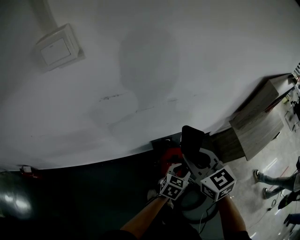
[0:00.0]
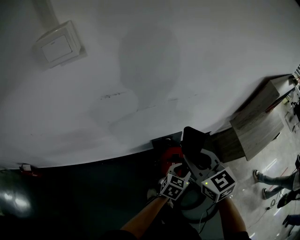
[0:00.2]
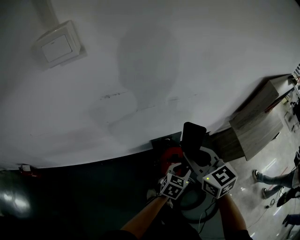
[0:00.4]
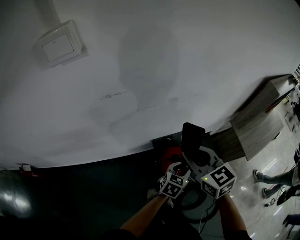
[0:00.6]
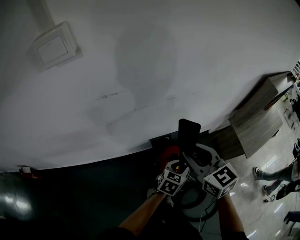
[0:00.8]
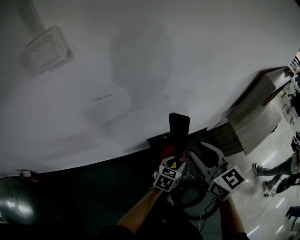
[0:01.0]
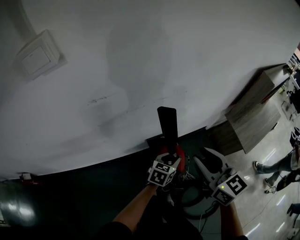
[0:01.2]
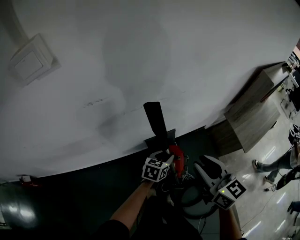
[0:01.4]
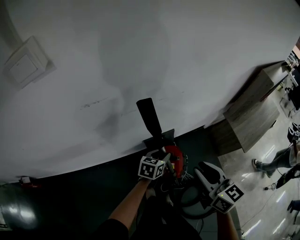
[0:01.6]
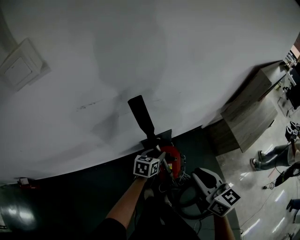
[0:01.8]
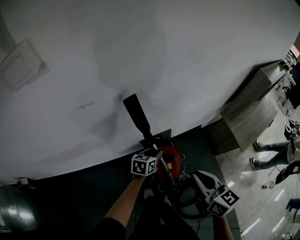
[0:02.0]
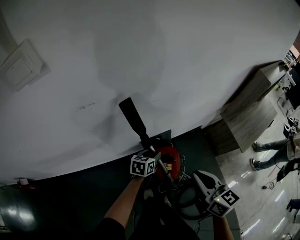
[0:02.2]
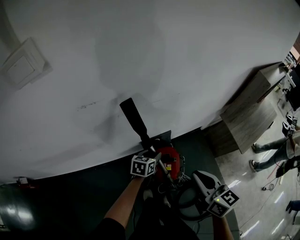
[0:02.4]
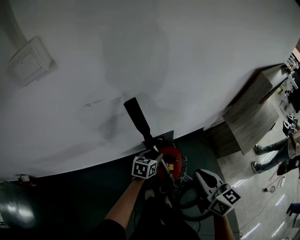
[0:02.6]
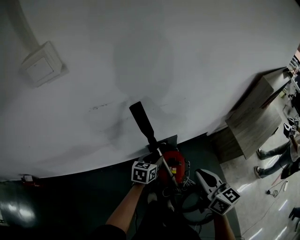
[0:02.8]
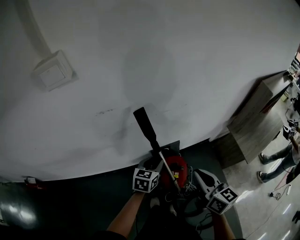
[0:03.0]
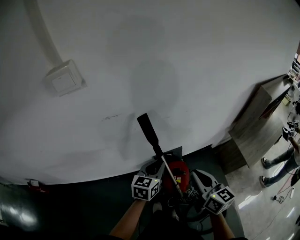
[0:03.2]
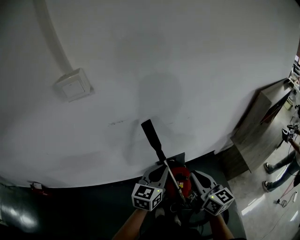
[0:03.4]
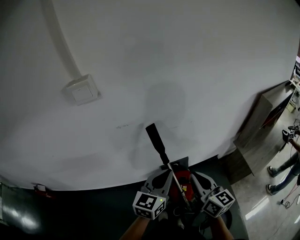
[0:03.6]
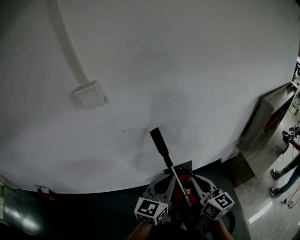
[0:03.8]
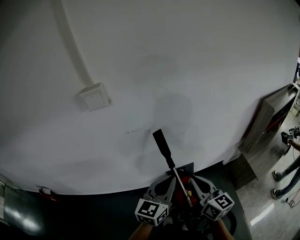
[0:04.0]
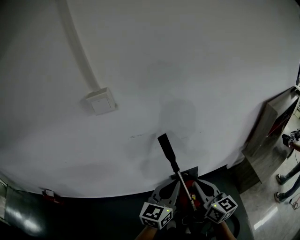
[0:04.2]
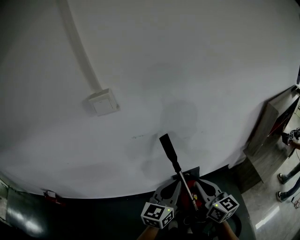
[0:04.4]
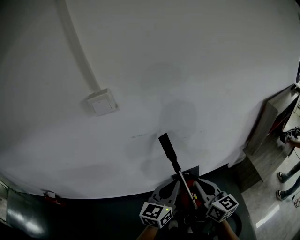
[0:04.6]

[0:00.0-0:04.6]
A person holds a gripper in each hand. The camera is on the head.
0:00.0 to 0:01.6: The right gripper shifts some 10 cm to the right, and rotates about 20 degrees. The left gripper travels forward and to the left by roughly 10 cm.
0:01.6 to 0:03.0: The right gripper closes, while the left gripper moves upward and to the left, approximately 10 cm.
0:03.0 to 0:04.6: The right gripper moves upward and to the left, roughly 10 cm, while the left gripper shifts some 25 cm upward and backward, turns by about 30 degrees, and closes its fingers.

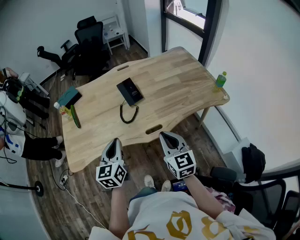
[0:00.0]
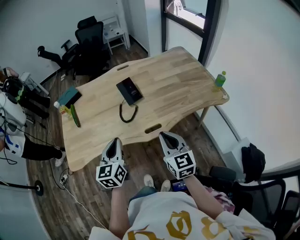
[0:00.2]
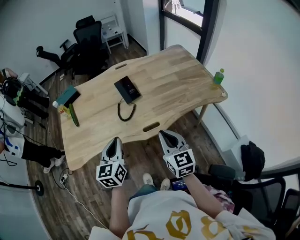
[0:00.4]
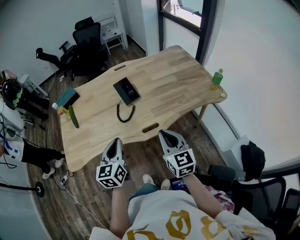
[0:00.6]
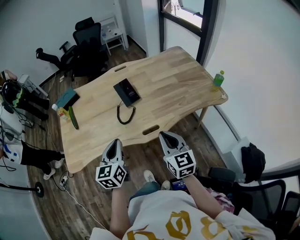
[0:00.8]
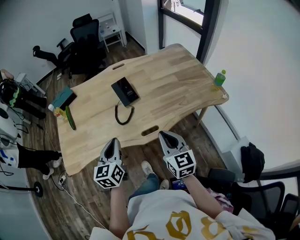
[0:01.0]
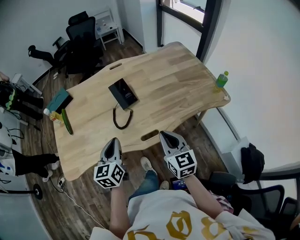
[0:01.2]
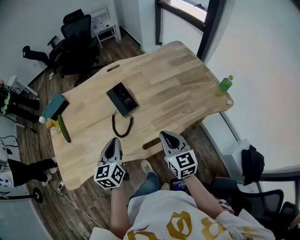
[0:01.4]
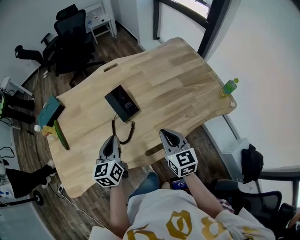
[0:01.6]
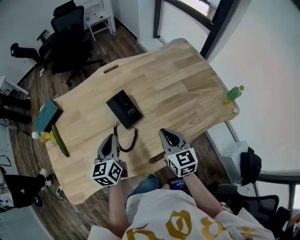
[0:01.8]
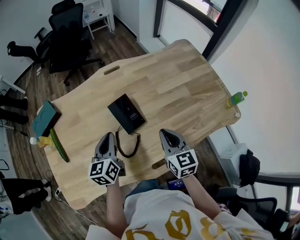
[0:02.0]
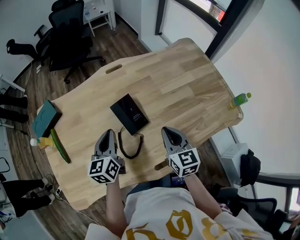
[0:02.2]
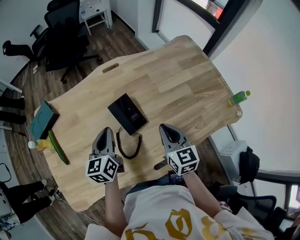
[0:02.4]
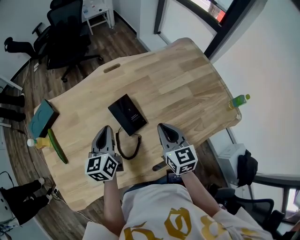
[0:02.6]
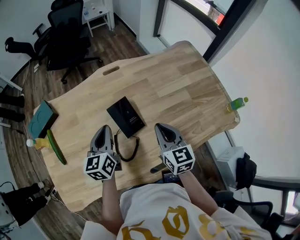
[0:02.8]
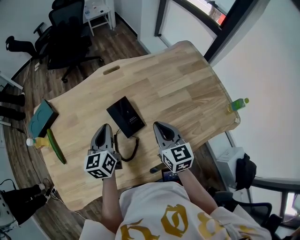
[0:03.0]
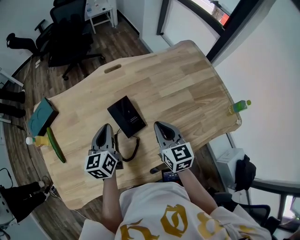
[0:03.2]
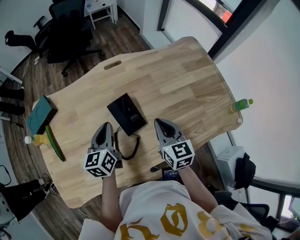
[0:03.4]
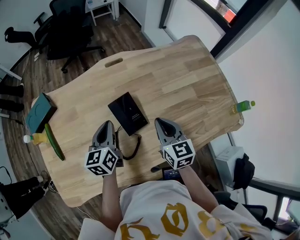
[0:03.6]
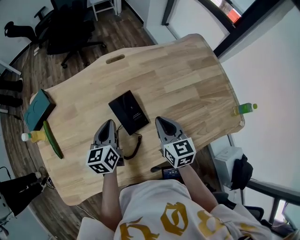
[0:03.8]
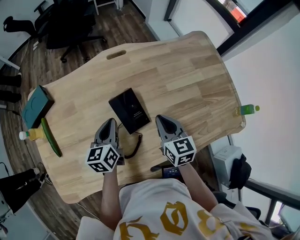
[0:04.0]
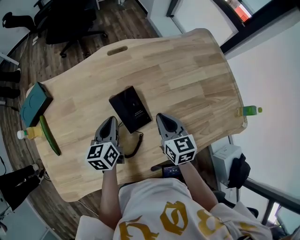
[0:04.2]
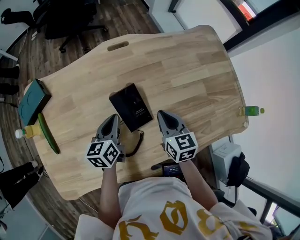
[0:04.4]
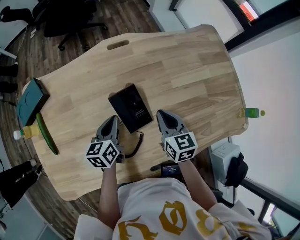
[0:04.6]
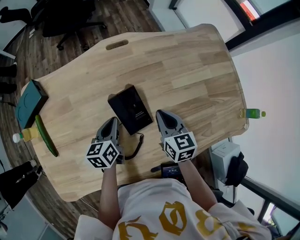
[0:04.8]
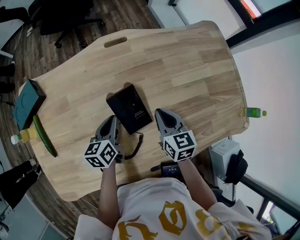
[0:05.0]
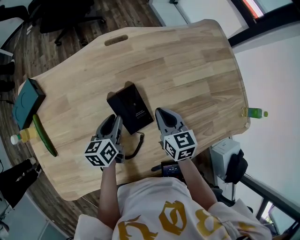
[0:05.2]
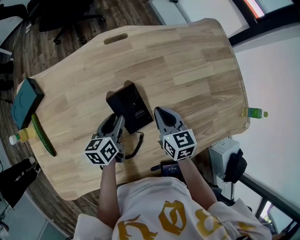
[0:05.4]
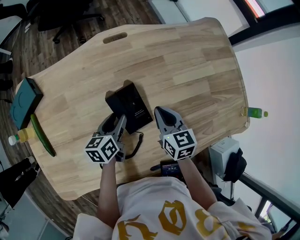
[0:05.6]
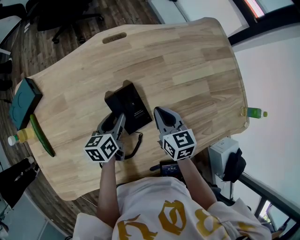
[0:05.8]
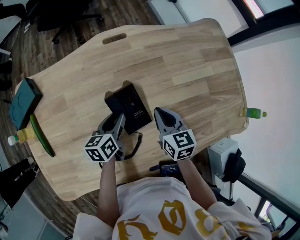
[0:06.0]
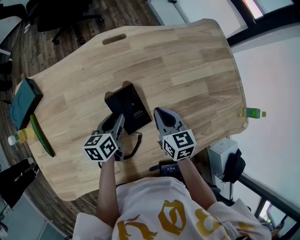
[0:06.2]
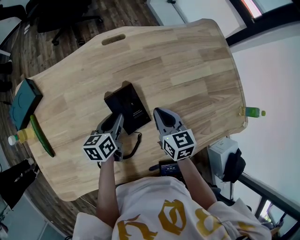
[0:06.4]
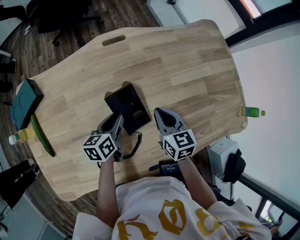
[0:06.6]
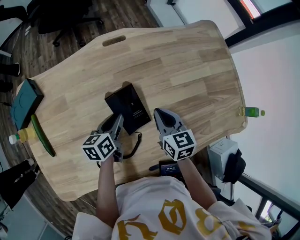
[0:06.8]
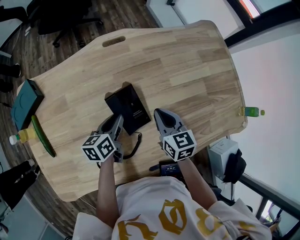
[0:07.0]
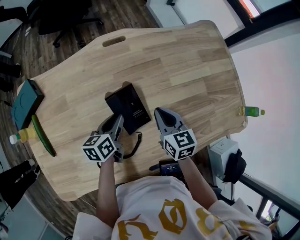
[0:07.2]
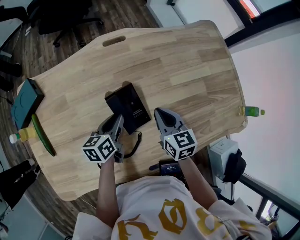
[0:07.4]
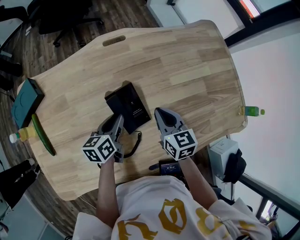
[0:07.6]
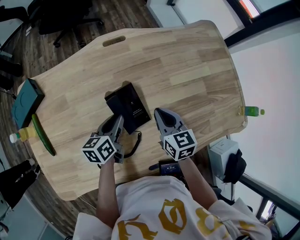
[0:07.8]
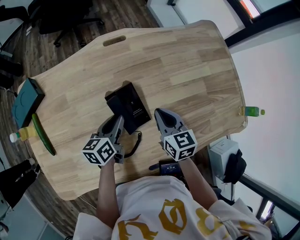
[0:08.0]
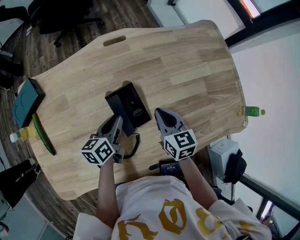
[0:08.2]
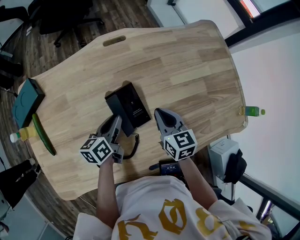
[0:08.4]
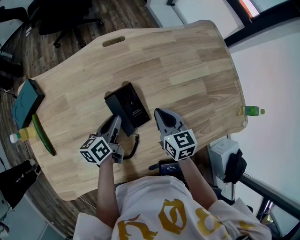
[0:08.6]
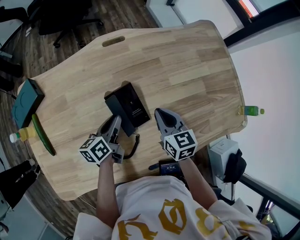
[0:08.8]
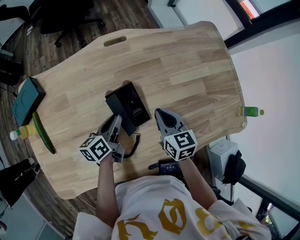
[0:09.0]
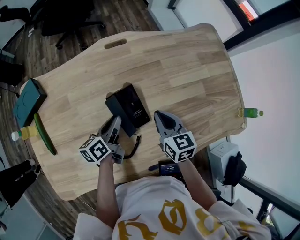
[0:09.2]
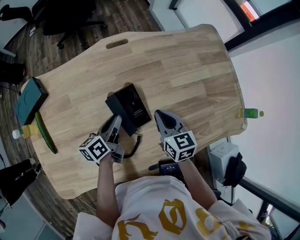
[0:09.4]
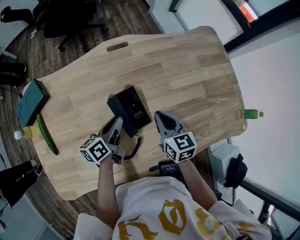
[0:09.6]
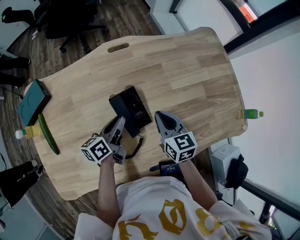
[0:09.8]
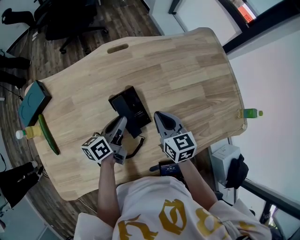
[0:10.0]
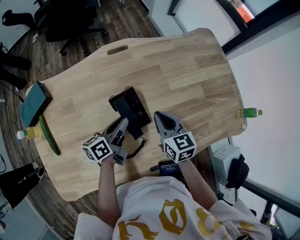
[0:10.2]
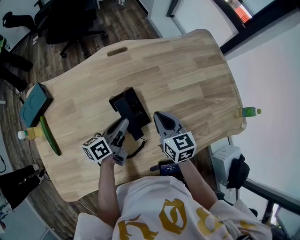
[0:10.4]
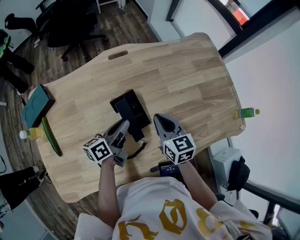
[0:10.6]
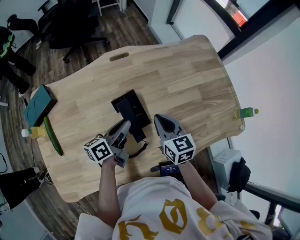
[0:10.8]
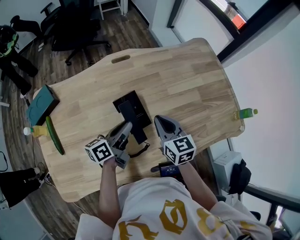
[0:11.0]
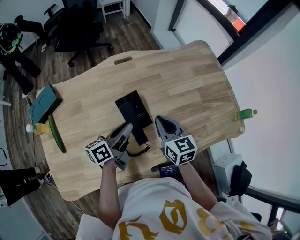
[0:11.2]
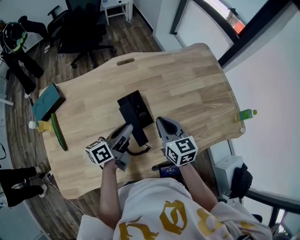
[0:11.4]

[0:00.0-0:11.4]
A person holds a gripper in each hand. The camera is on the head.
0:00.0 to 0:01.4: Both grippers travel together forward, approximately 10 cm.
0:01.4 to 0:02.8: The grippers both shift forward by about 20 cm.
0:02.8 to 0:04.2: The right gripper moves downward and forward, approximately 10 cm. The left gripper travels downward by some 10 cm.
0:04.2 to 0:05.6: The right gripper moves some 5 cm. The left gripper goes about 5 cm downward, and opens up.
0:05.6 to 0:07.2: Both grippers stay about where they are.
0:07.2 to 0:10.0: The grippers make only small movements.
0:10.0 to 0:11.4: The two grippers go approximately 5 cm upward.

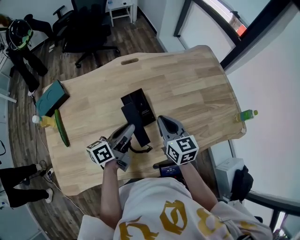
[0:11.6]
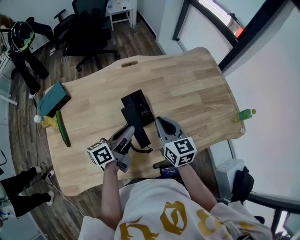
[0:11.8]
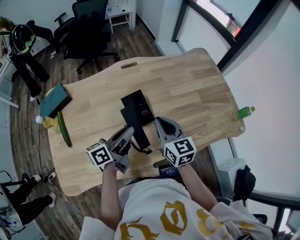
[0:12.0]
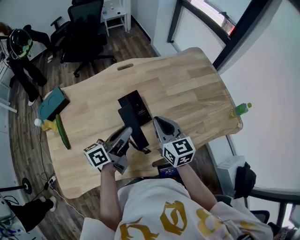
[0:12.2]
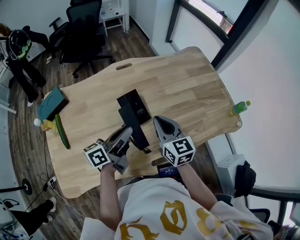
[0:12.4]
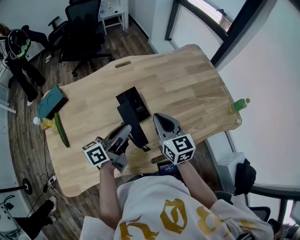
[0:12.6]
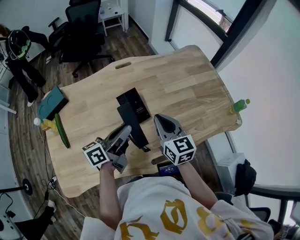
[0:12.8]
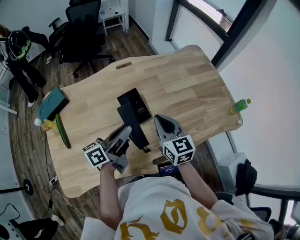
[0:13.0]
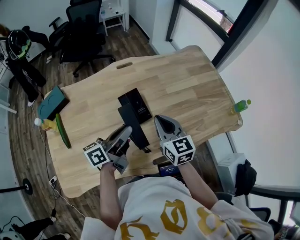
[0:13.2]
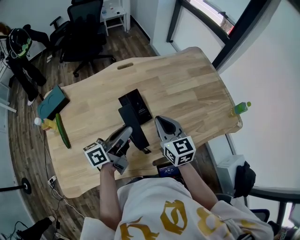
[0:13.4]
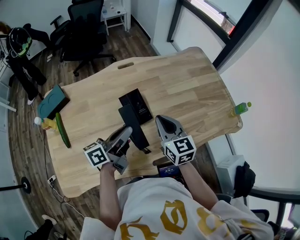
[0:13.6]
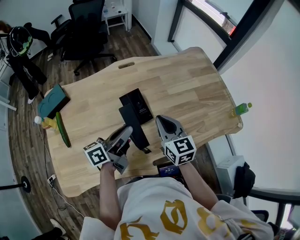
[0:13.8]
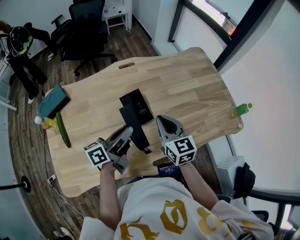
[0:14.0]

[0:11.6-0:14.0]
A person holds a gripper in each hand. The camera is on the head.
0:11.6 to 0:12.8: The left gripper ends up some 5 cm from where it was. The right gripper ends up about 5 cm from where it was.
0:12.8 to 0:14.0: Both grippers stay put.

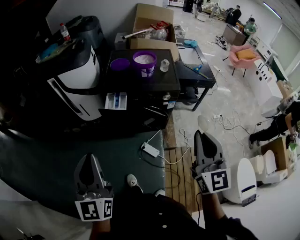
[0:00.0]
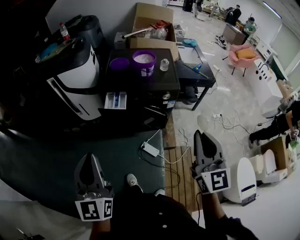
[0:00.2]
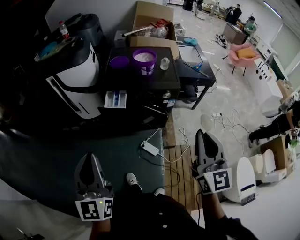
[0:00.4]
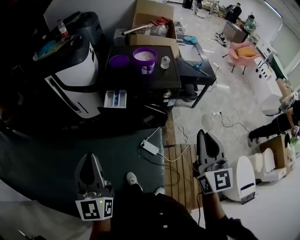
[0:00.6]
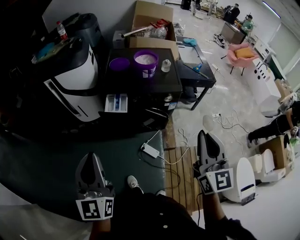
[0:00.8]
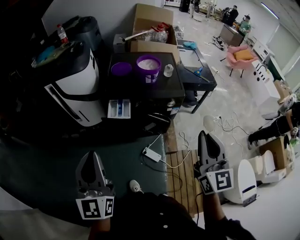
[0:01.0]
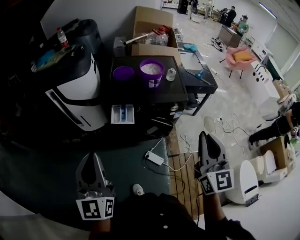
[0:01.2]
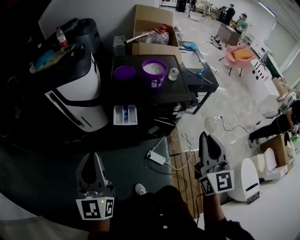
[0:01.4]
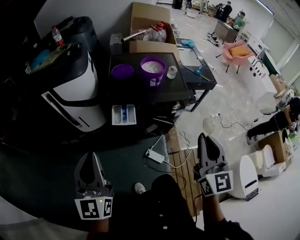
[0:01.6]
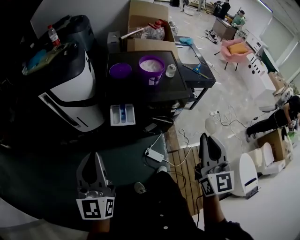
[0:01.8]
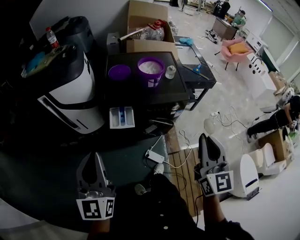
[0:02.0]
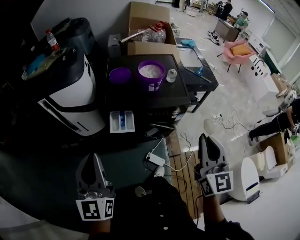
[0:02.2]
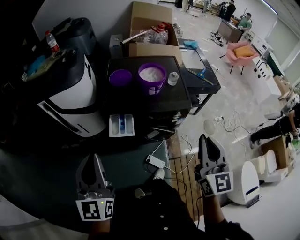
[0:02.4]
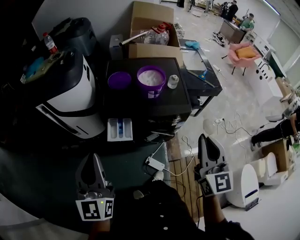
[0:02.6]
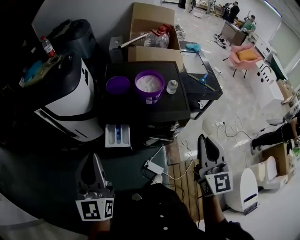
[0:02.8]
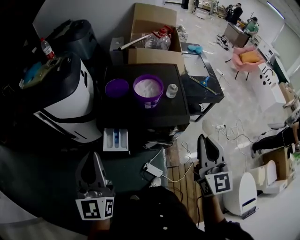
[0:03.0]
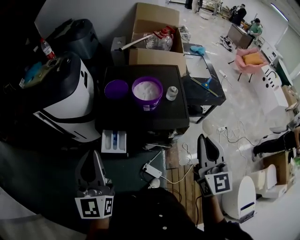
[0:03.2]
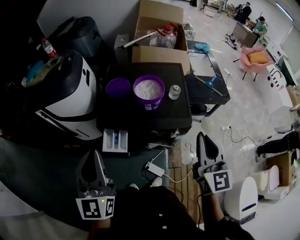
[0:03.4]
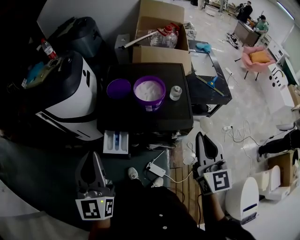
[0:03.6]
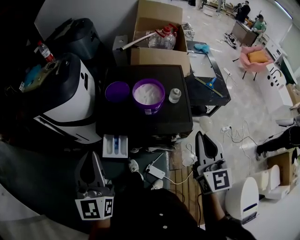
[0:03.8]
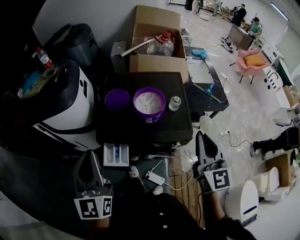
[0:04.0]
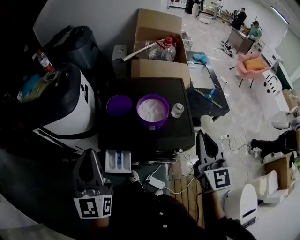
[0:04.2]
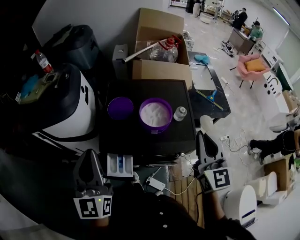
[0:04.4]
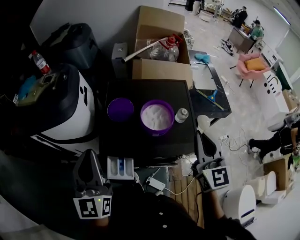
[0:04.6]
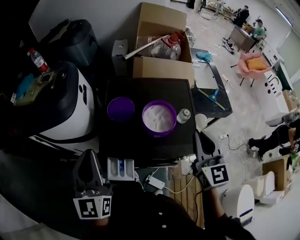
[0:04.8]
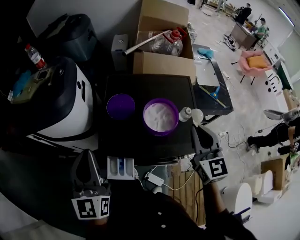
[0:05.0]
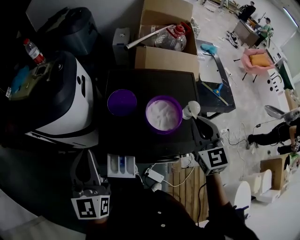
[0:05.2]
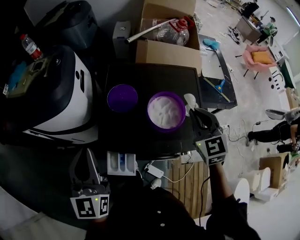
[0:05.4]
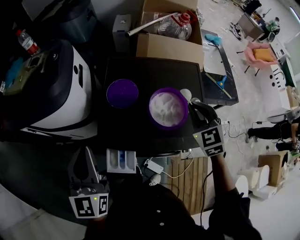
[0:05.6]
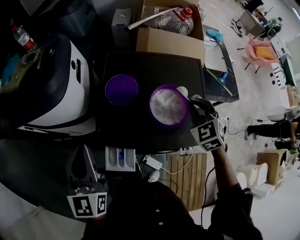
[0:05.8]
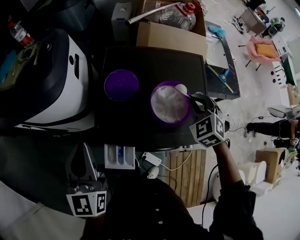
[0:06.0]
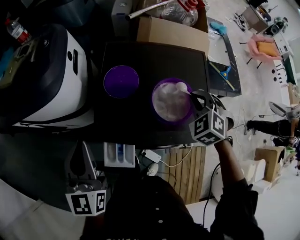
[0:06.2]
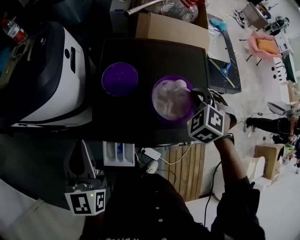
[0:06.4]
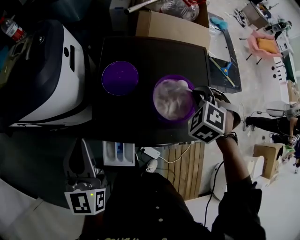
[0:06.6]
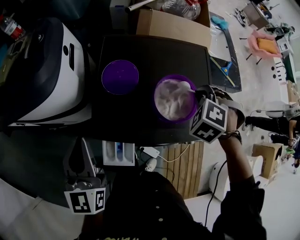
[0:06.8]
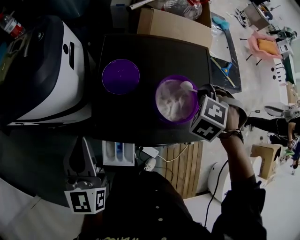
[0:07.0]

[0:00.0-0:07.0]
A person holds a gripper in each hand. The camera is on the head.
0:00.0 to 0:01.4: The grippers both shift forward and to the left by roughly 15 cm.
0:01.4 to 0:02.8: Both grippers travel together forward, some 15 cm.
0:02.8 to 0:04.2: The two grippers go some 15 cm forward.
0:04.2 to 0:05.6: The left gripper goes about 15 cm forward, downward and to the left. Meanwhile the right gripper heads forward and downward, covering some 25 cm, and points its fingers some 30 degrees further downward.
0:05.6 to 0:07.0: The two grippers go roughly 5 cm downward. The right gripper tips its fingers downward by about 30 degrees.
